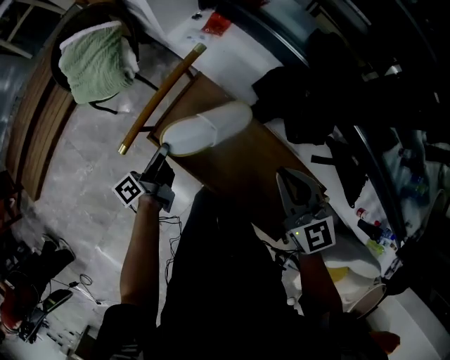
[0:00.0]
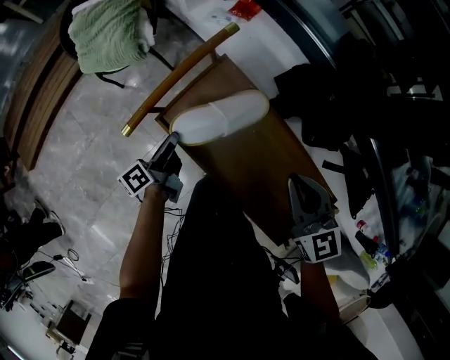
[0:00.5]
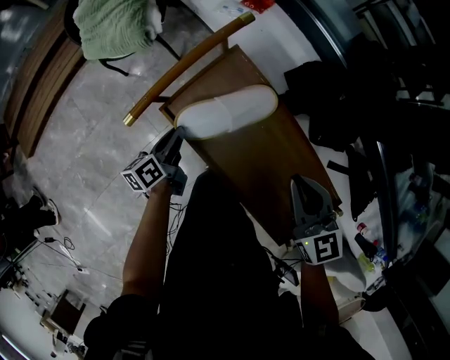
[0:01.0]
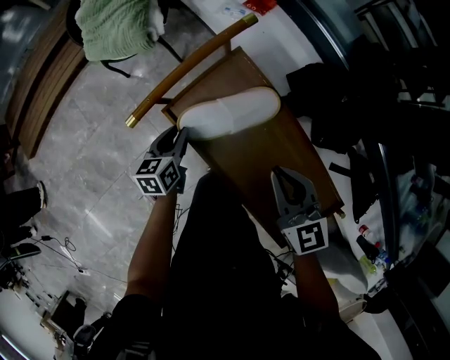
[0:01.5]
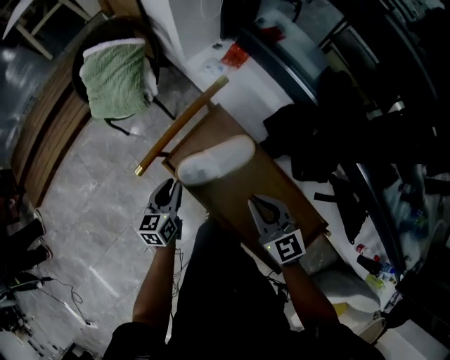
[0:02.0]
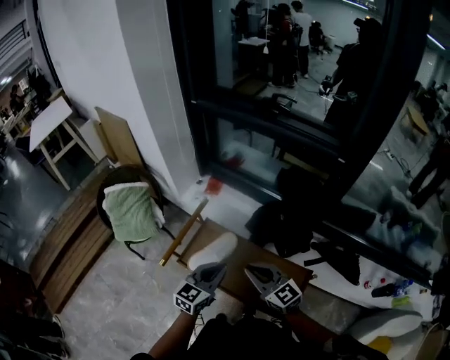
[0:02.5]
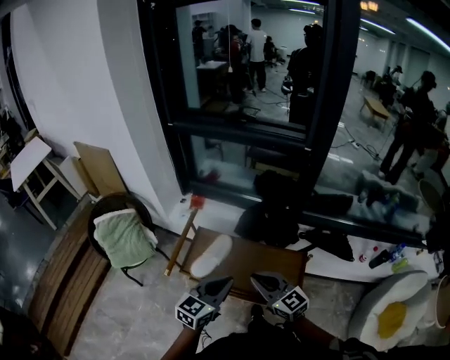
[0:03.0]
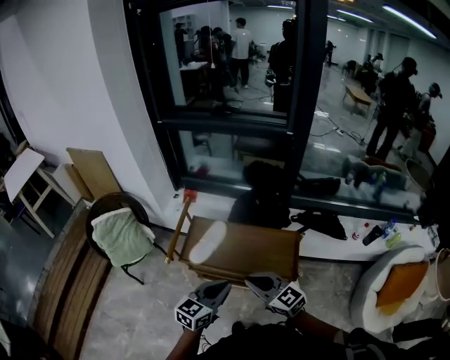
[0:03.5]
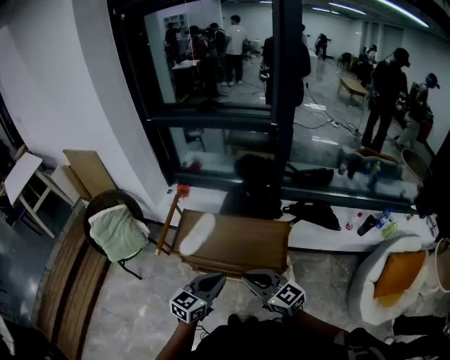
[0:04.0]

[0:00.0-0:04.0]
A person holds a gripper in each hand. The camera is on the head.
0:00.0 to 0:02.0: The right gripper is displaced to the left and downward by approximately 10 cm; the left gripper moves roughly 10 cm downward and comes back, and twists about 50 degrees clockwise, seen from behind.
0:02.0 to 0:04.0: The right gripper ends up approximately 35 cm from where it was, and swivels some 20 degrees, while the left gripper changes place by approximately 40 cm, rotates about 70 degrees, and closes up.

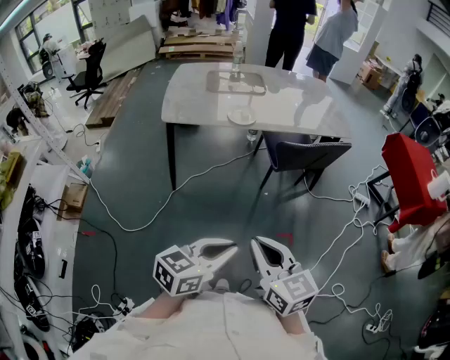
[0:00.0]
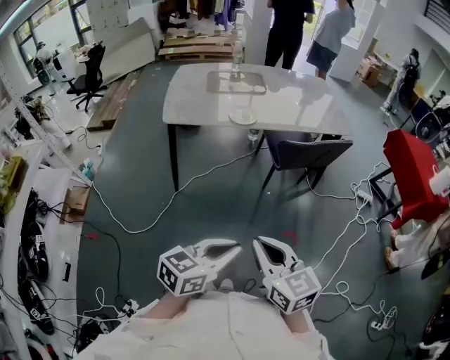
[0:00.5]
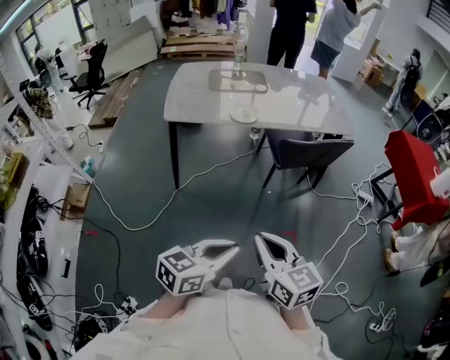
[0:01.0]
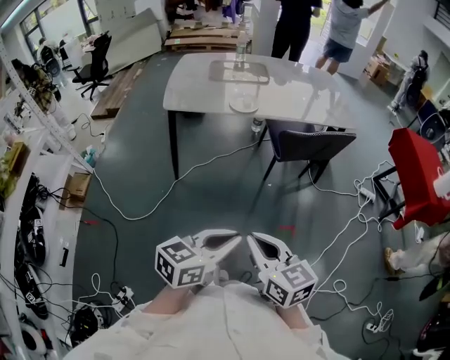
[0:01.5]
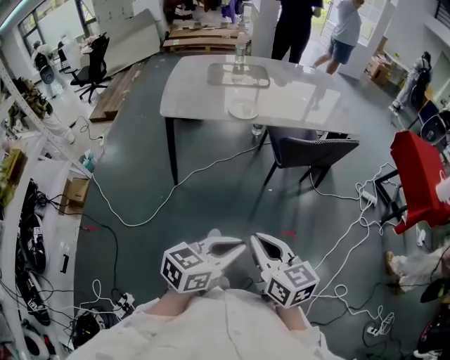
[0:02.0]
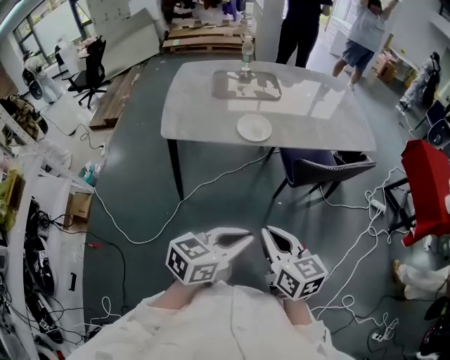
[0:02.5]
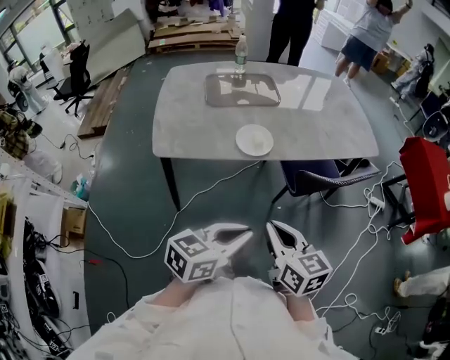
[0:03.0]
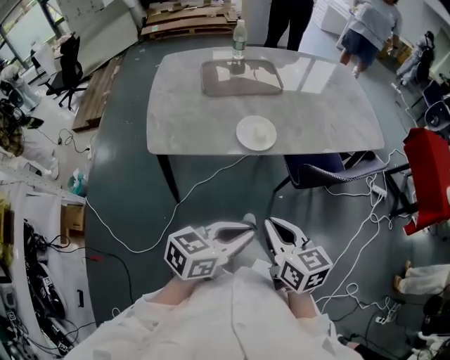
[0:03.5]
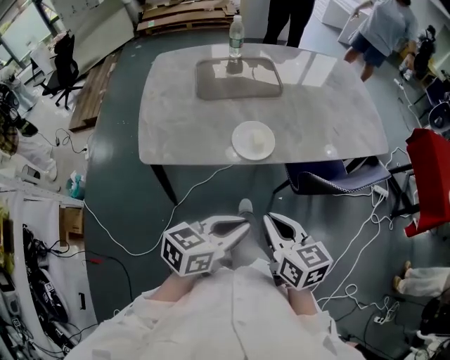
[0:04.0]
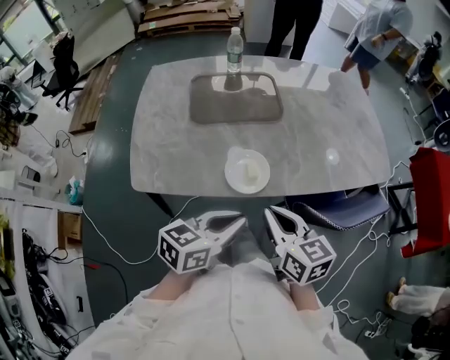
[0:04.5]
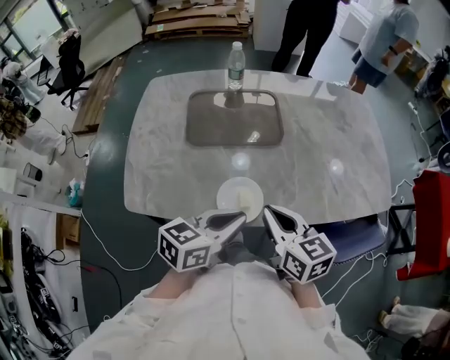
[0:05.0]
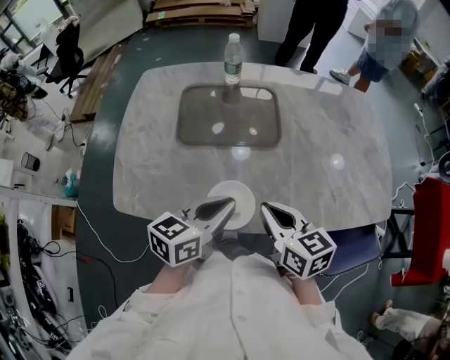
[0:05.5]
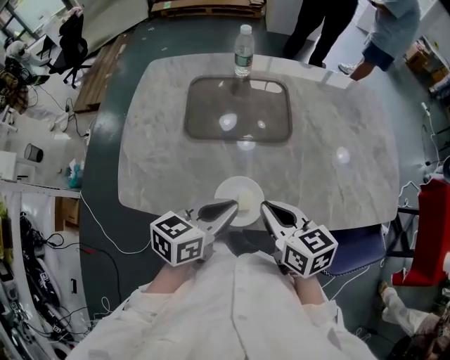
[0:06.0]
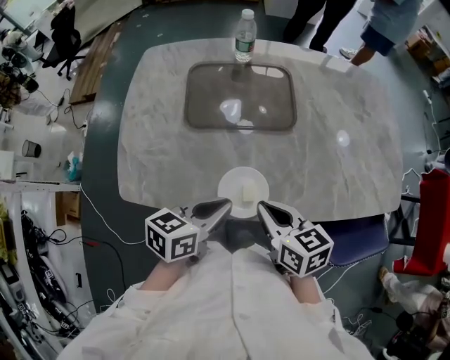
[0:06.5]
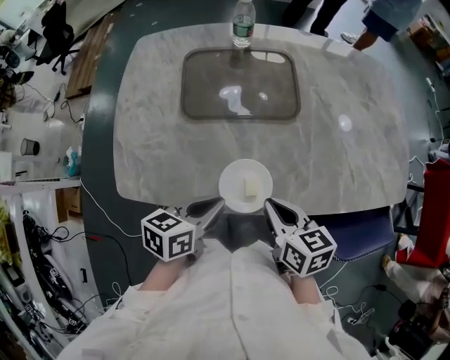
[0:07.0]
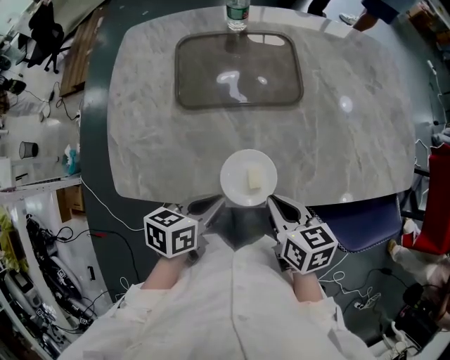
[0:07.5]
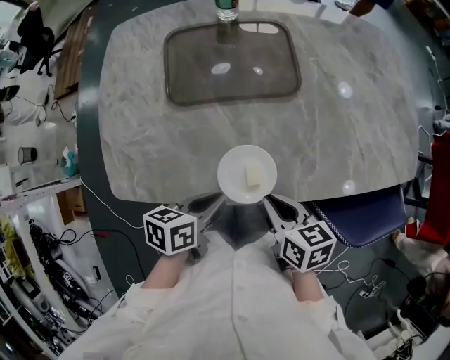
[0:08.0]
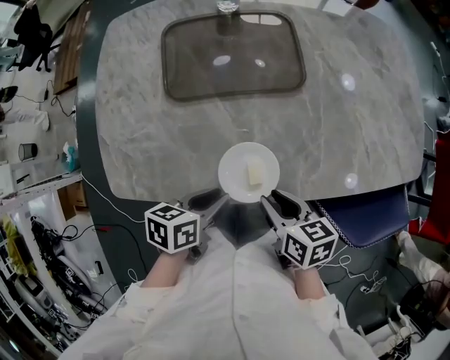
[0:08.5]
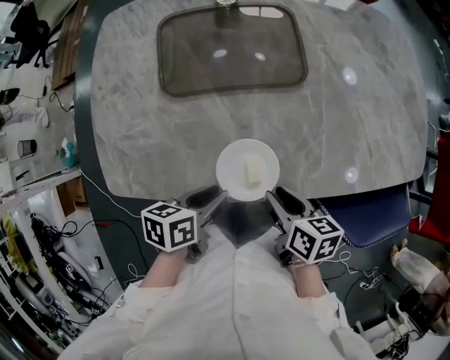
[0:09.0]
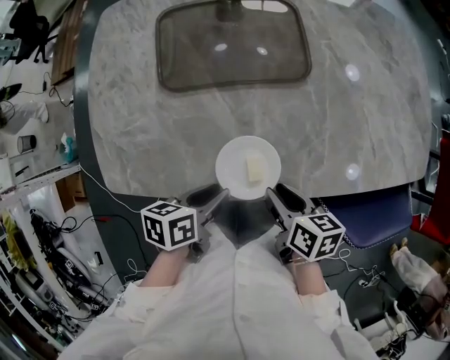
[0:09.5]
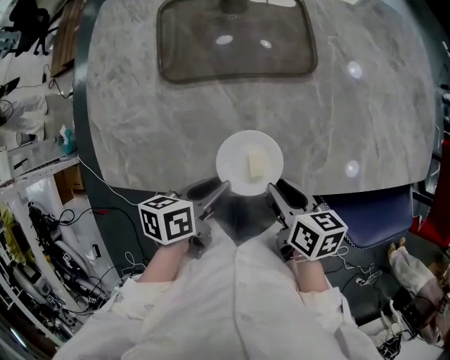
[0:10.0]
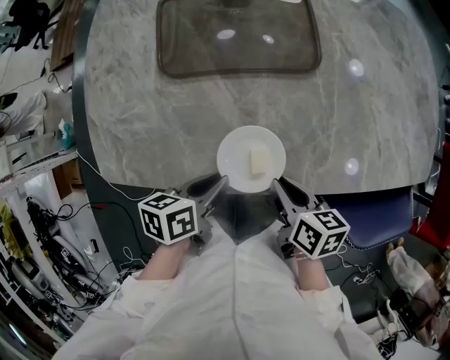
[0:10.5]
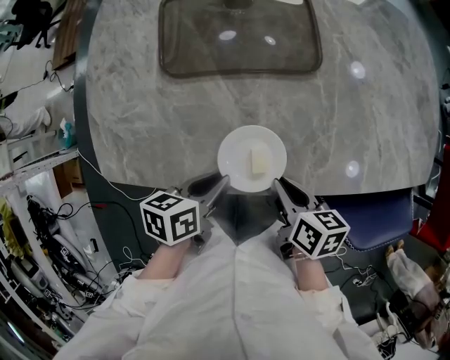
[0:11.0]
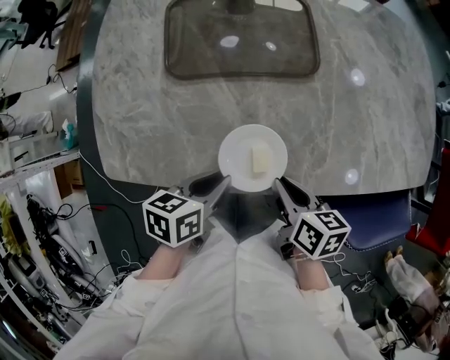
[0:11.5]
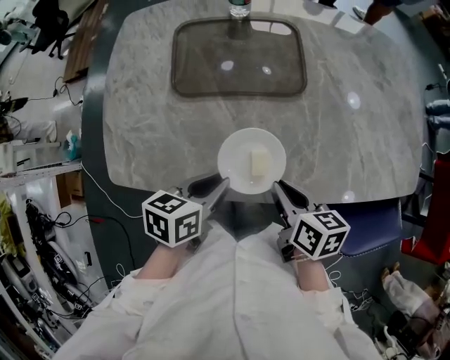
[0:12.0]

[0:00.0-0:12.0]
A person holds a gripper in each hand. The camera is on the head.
0:00.0 to 0:02.0: The left gripper ends up roughly 5 cm from where it was. The right gripper goes some 5 cm downward.
0:02.0 to 0:04.0: Both grippers travel together forward and to the left, approximately 35 cm.
0:04.0 to 0:06.0: Both grippers travel together forward, approximately 30 cm.
0:06.0 to 0:08.0: Both grippers travel together downward, approximately 10 cm. The right gripper swivels roughly 20 degrees, while the left gripper changes its angle by about 30 degrees.
0:08.0 to 0:10.0: The left gripper opens up, while the right gripper shifts by about 5 cm, and opens.
0:10.0 to 0:12.0: The right gripper shifts by approximately 5 cm, while the left gripper goes approximately 5 cm upward.

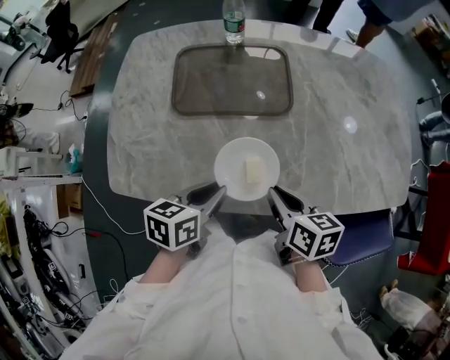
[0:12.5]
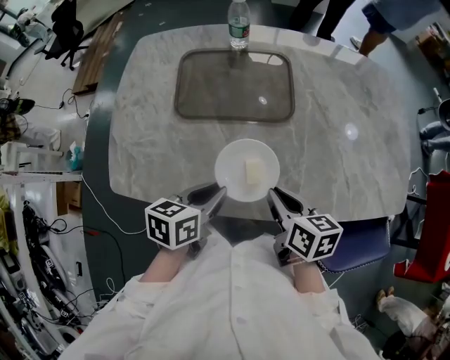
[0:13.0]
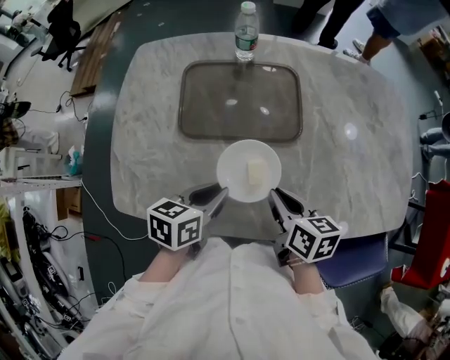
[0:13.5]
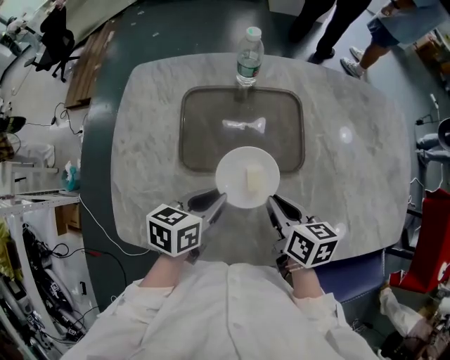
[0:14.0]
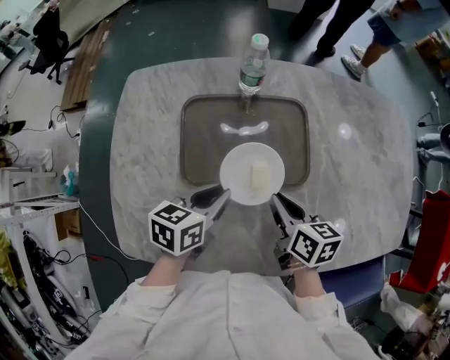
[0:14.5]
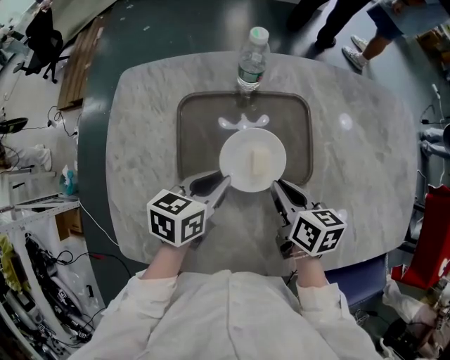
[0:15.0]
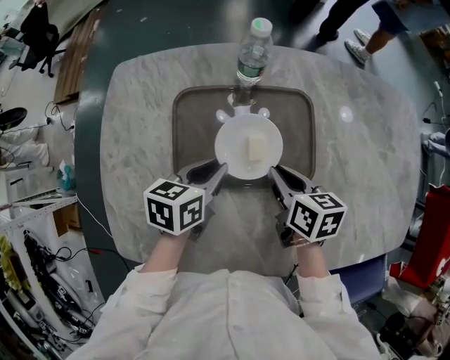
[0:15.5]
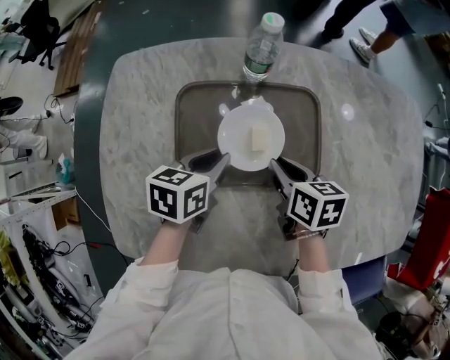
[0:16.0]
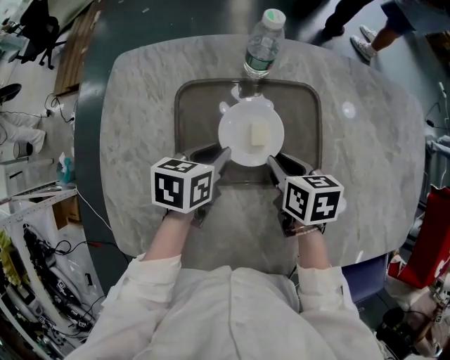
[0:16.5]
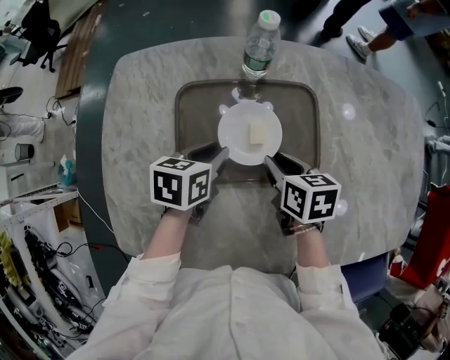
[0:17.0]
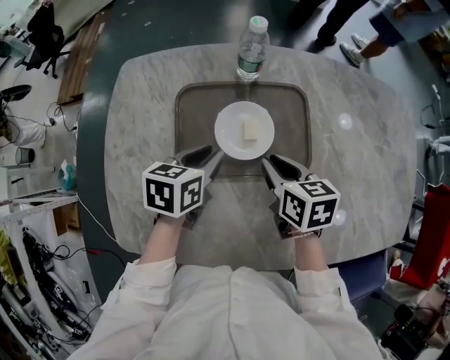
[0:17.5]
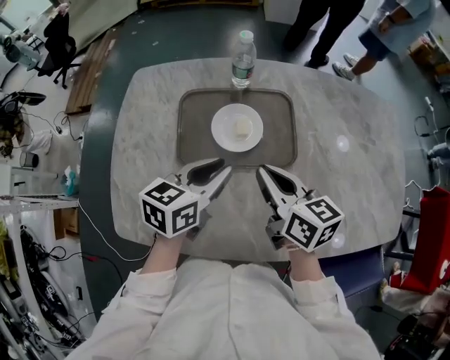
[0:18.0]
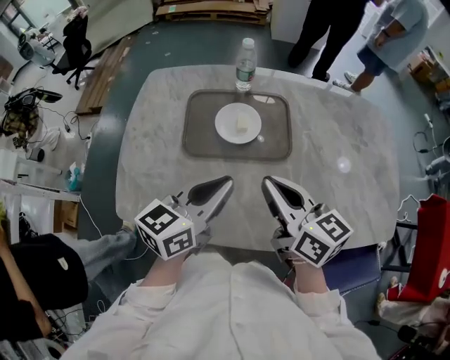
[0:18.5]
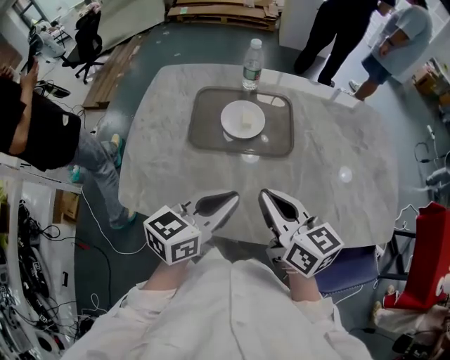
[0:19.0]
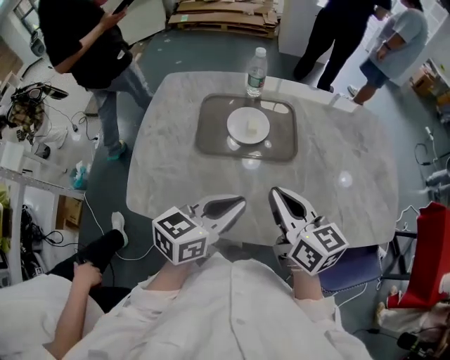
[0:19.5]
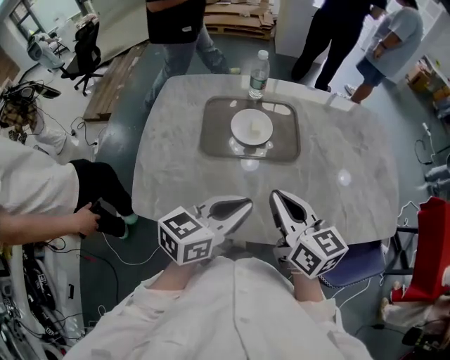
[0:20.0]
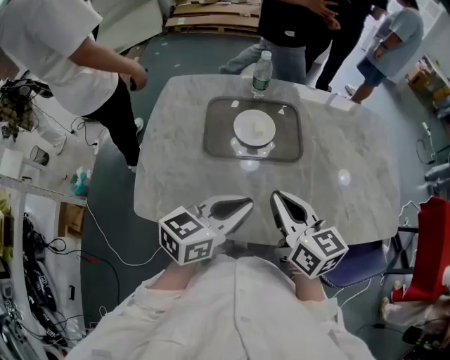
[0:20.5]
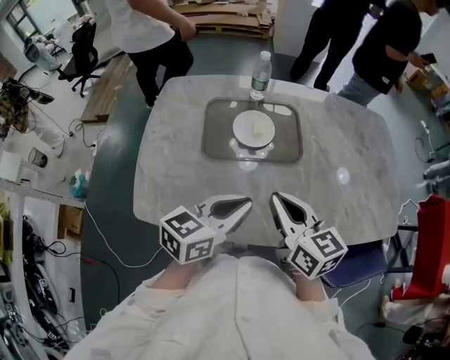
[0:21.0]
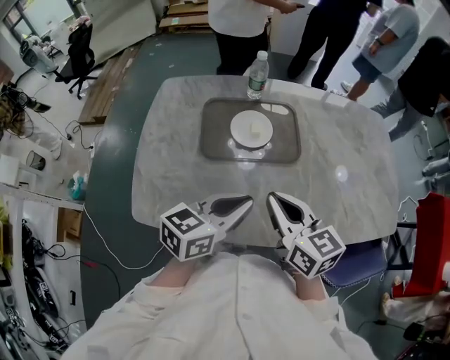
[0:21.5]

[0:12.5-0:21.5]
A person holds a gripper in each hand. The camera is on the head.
0:12.5 to 0:14.5: Both grippers travel together forward, some 20 cm.
0:14.5 to 0:17.0: The two grippers go approximately 10 cm forward and downward.
0:17.0 to 0:19.5: Both grippers travel together backward and upward, roughly 30 cm. The left gripper points its fingers some 30 degrees further upward, while the right gripper angles its fingers upward, by roughly 40 degrees.
0:19.5 to 0:21.5: The grippers move only a little.

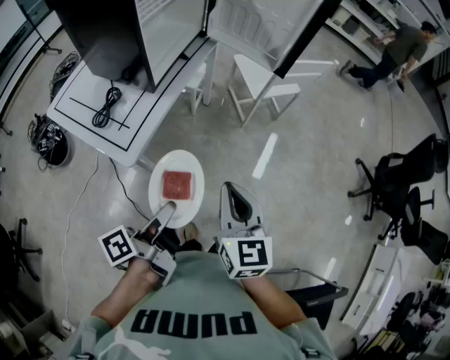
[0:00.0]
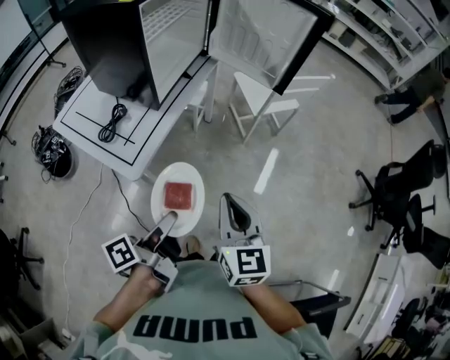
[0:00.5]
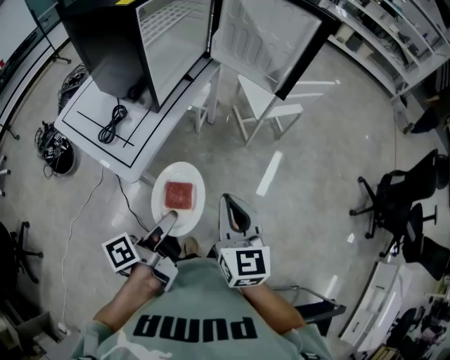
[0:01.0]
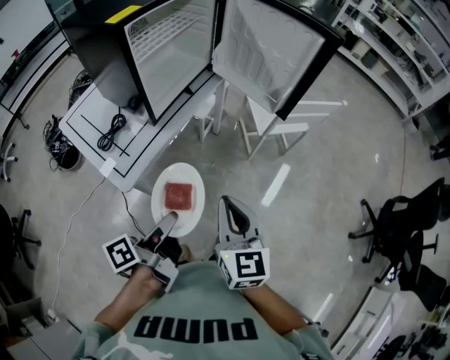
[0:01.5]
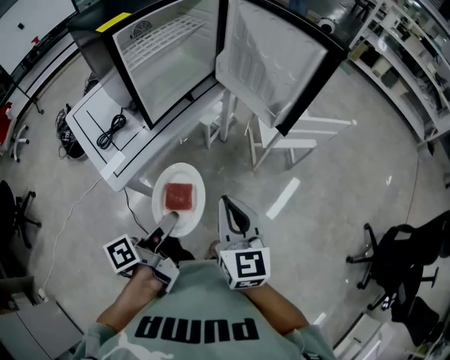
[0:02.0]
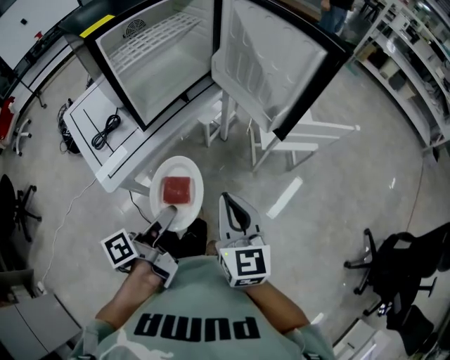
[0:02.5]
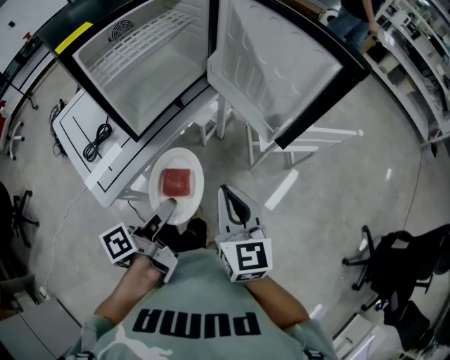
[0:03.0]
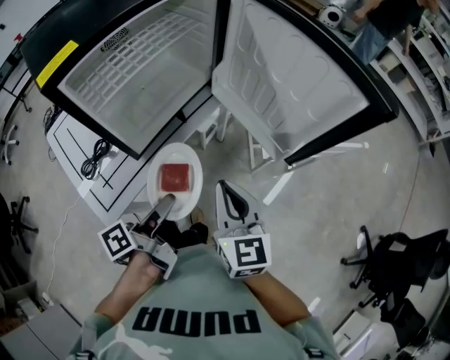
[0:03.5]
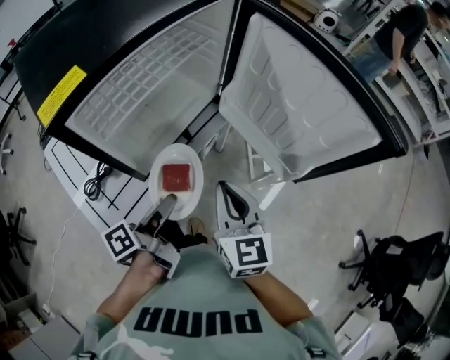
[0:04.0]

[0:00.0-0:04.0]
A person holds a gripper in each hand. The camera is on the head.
0:00.0 to 0:02.0: The left gripper shifts about 15 cm to the right and forward. The right gripper shifts some 15 cm forward and to the right.
0:02.0 to 0:04.0: Both grippers travel together forward, some 25 cm.
